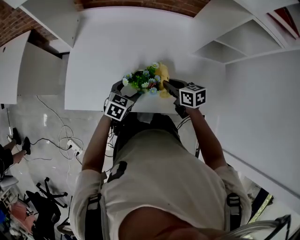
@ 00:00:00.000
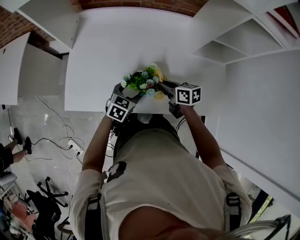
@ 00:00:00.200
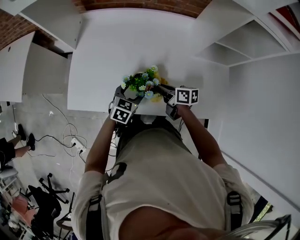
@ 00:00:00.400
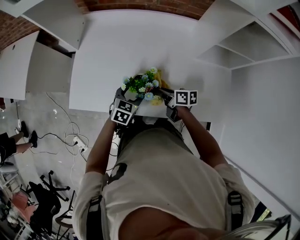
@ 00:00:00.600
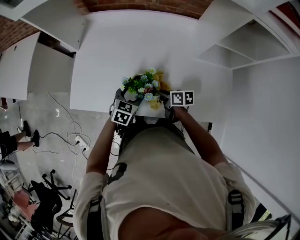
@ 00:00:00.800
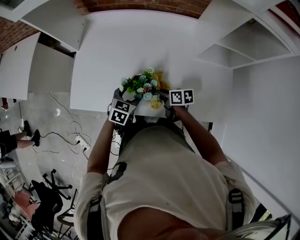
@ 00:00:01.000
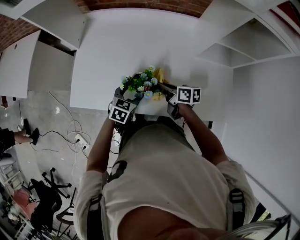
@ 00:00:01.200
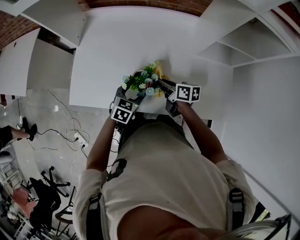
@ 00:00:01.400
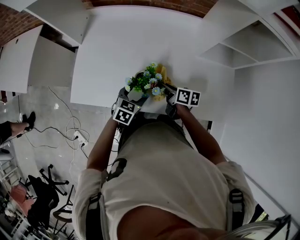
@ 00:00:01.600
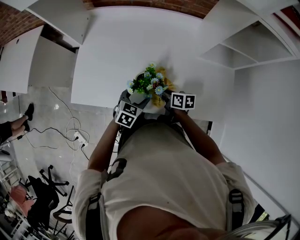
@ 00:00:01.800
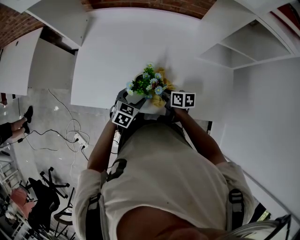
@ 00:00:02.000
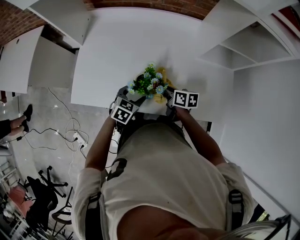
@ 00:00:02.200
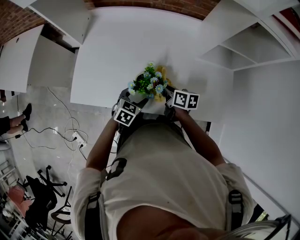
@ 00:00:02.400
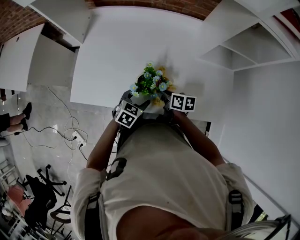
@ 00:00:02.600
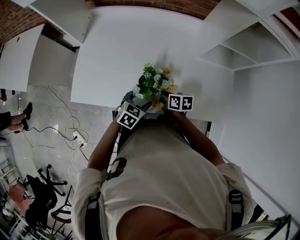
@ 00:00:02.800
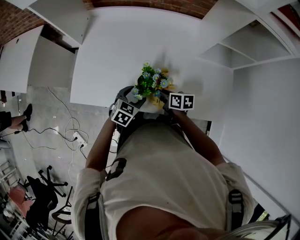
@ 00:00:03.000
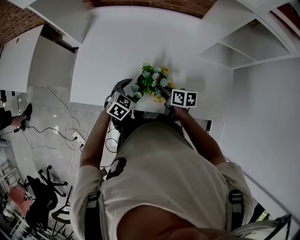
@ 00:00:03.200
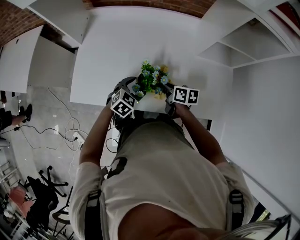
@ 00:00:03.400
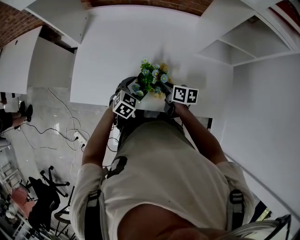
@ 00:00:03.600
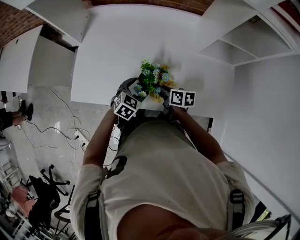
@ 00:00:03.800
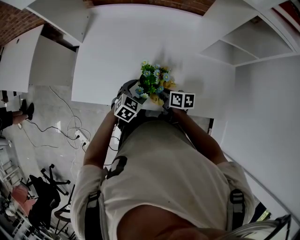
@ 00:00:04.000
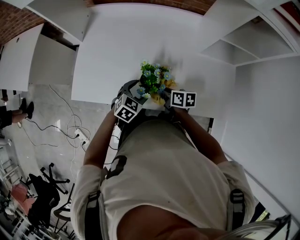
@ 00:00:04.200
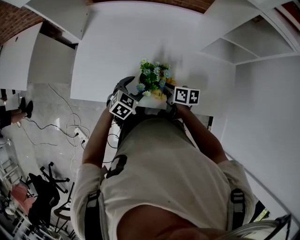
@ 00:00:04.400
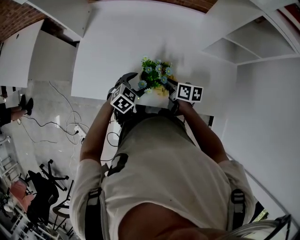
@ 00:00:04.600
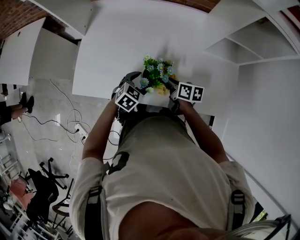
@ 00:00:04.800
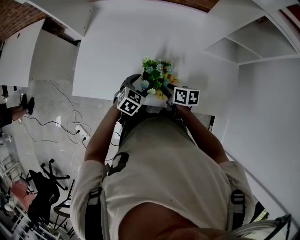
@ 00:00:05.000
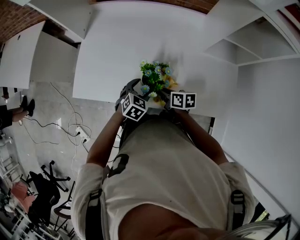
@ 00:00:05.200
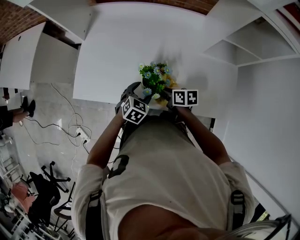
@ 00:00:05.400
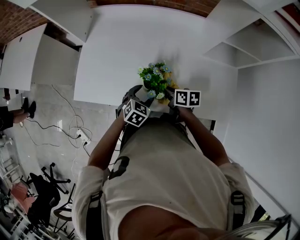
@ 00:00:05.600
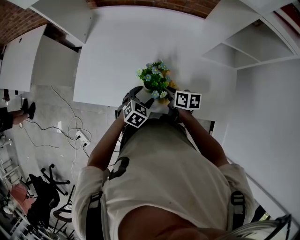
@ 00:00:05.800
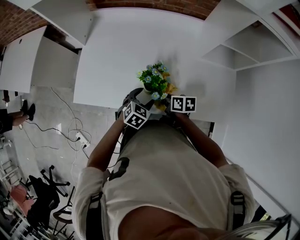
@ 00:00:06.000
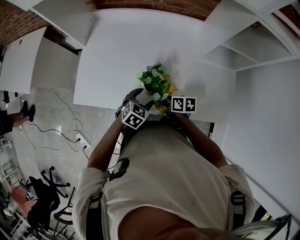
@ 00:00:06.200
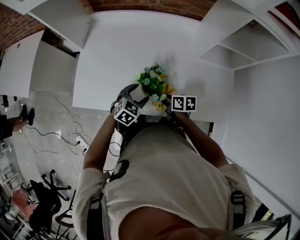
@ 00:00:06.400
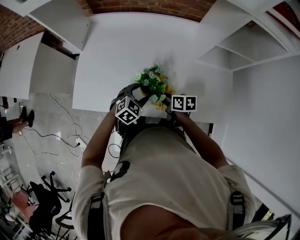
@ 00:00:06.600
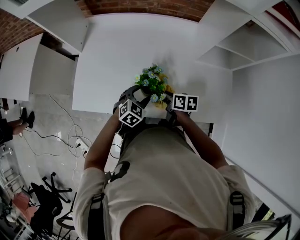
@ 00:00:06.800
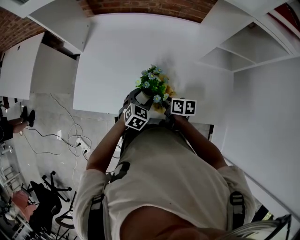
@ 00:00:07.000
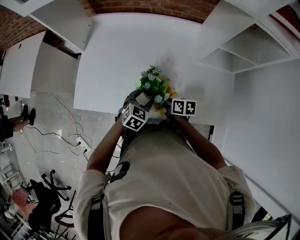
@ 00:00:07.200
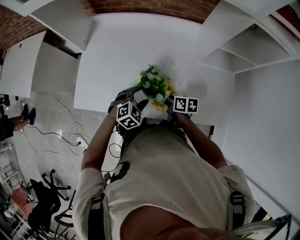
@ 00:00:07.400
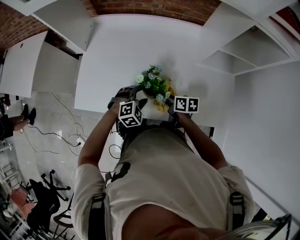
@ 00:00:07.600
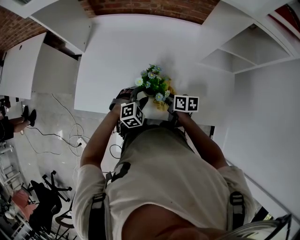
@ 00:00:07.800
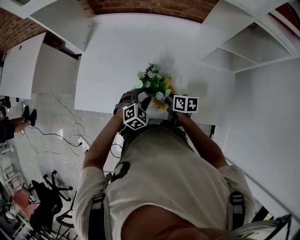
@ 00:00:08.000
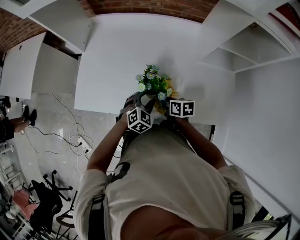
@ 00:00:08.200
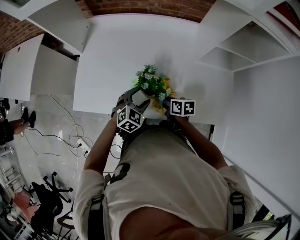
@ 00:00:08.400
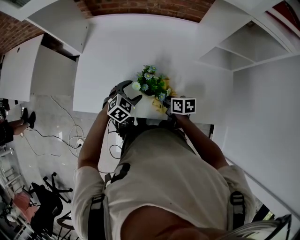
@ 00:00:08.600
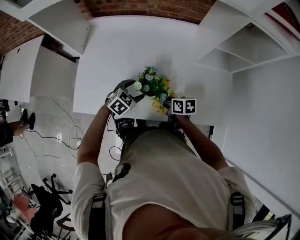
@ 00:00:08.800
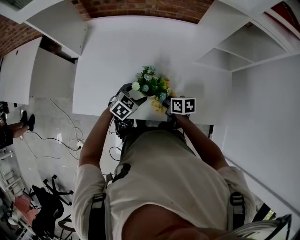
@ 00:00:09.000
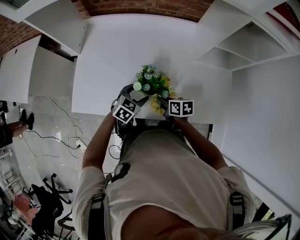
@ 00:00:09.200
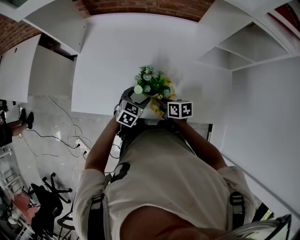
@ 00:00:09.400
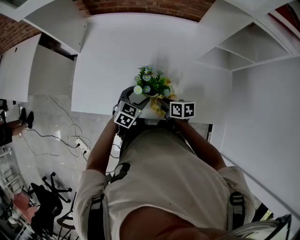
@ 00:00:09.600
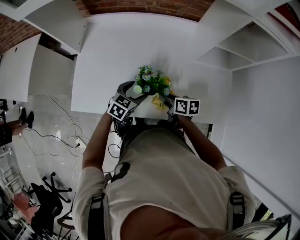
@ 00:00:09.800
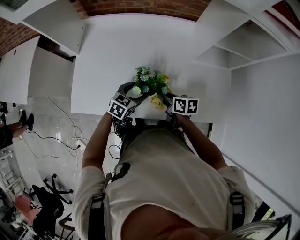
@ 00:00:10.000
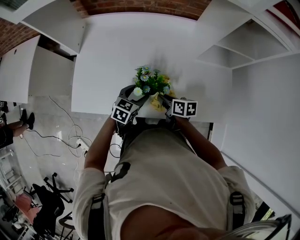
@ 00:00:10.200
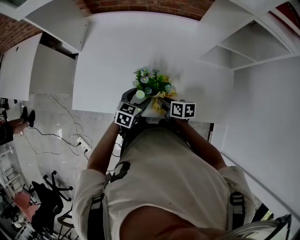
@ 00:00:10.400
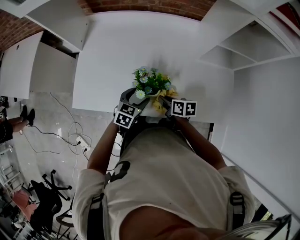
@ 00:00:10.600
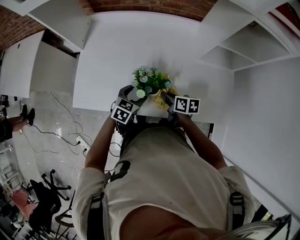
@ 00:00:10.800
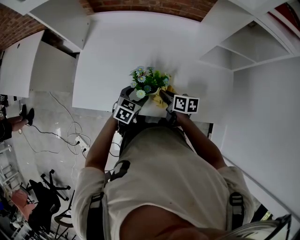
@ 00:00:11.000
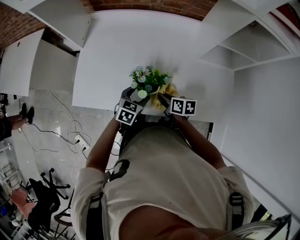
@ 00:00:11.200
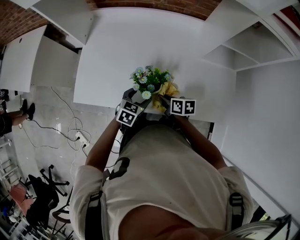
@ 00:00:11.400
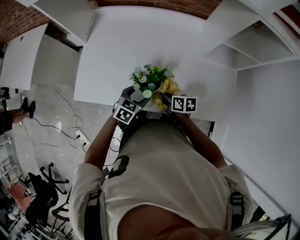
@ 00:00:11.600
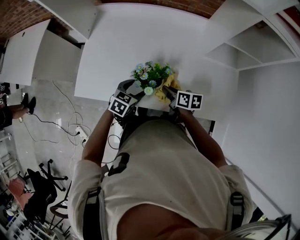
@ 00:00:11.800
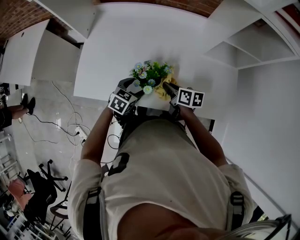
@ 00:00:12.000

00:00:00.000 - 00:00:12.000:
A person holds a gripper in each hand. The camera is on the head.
00:00:00.000 - 00:00:01.600: The right gripper shifts approximately 5 cm downward, and changes its angle by approximately 30 degrees.
00:00:01.600 - 00:00:06.000: There are only small adjustments of the grippers.
00:00:06.000 - 00:00:07.600: The left gripper swivels approximately 40 degrees.
00:00:07.600 - 00:00:09.000: The left gripper rotates roughly 30 degrees.
00:00:09.000 - 00:00:10.400: The left gripper swivels roughly 20 degrees.
00:00:10.400 - 00:00:12.000: The grippers make only small movements.

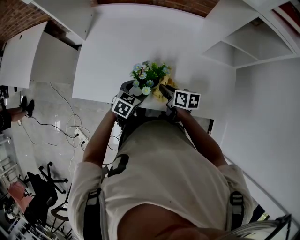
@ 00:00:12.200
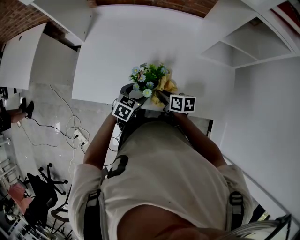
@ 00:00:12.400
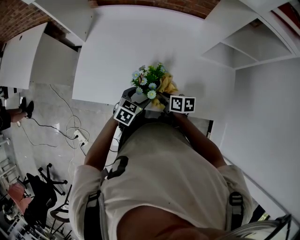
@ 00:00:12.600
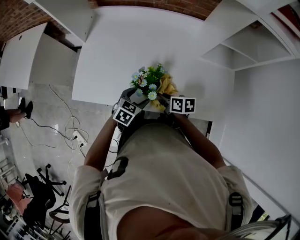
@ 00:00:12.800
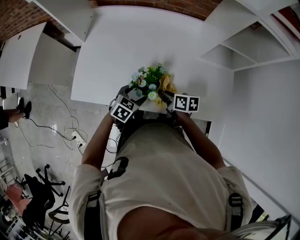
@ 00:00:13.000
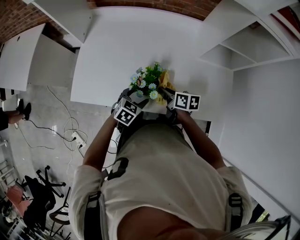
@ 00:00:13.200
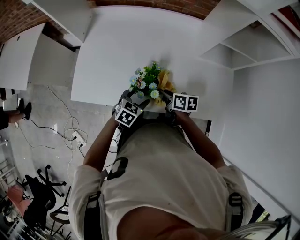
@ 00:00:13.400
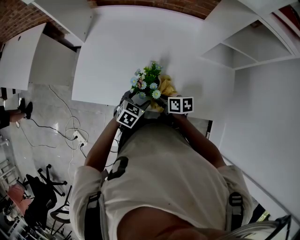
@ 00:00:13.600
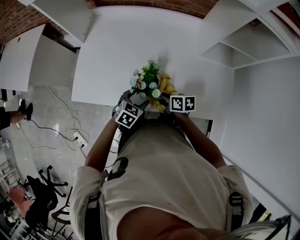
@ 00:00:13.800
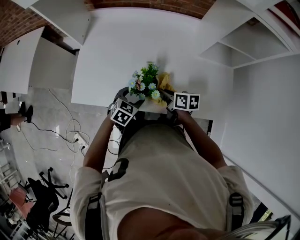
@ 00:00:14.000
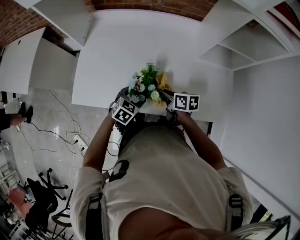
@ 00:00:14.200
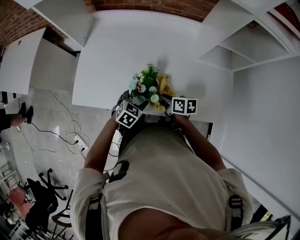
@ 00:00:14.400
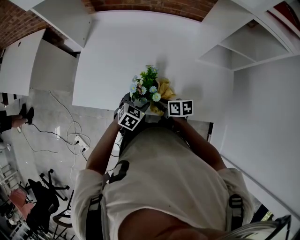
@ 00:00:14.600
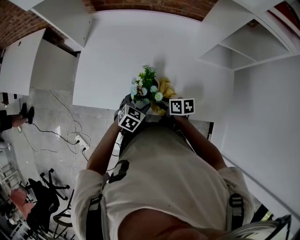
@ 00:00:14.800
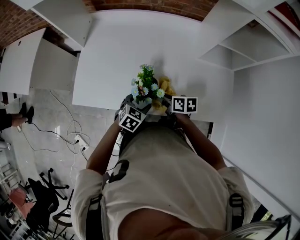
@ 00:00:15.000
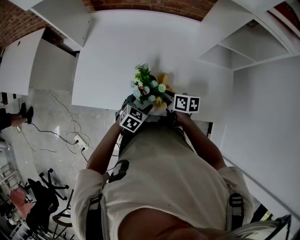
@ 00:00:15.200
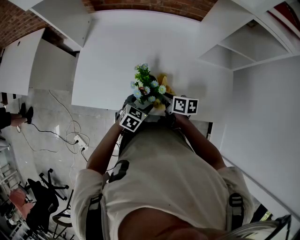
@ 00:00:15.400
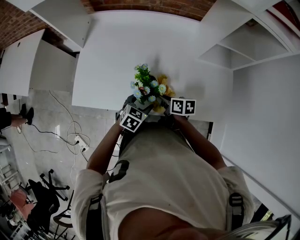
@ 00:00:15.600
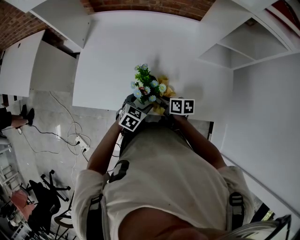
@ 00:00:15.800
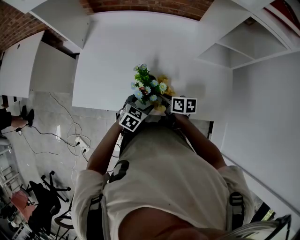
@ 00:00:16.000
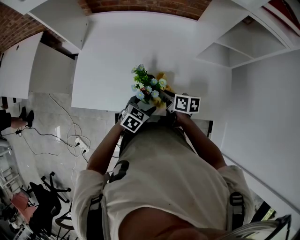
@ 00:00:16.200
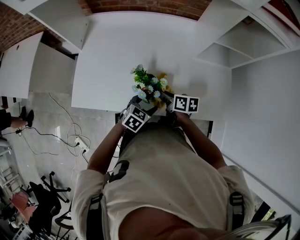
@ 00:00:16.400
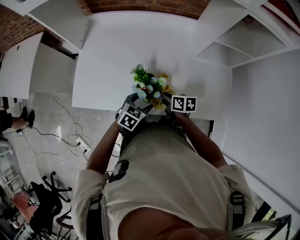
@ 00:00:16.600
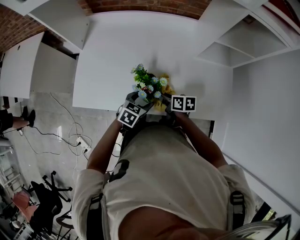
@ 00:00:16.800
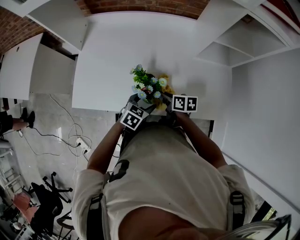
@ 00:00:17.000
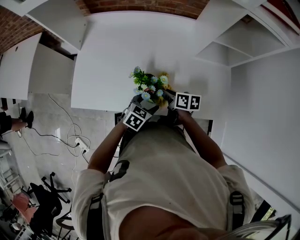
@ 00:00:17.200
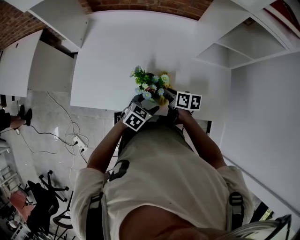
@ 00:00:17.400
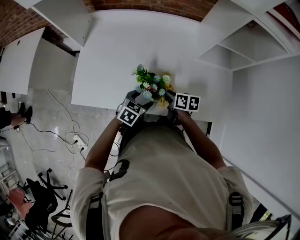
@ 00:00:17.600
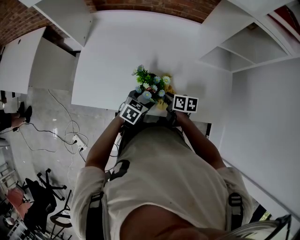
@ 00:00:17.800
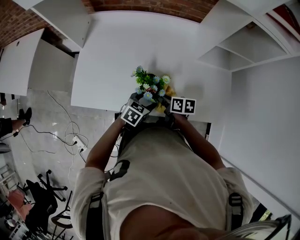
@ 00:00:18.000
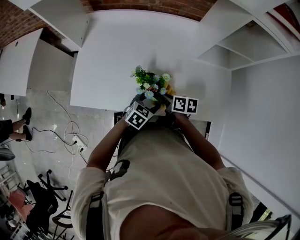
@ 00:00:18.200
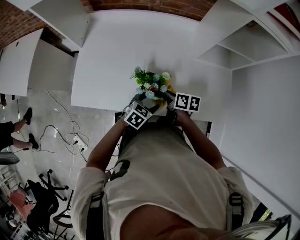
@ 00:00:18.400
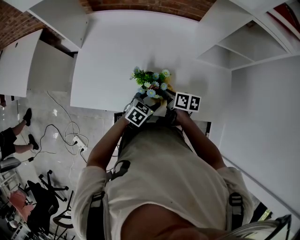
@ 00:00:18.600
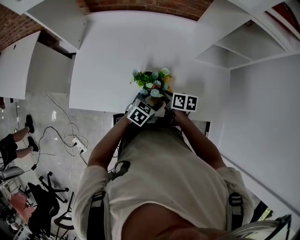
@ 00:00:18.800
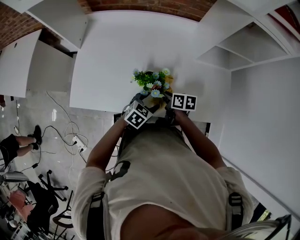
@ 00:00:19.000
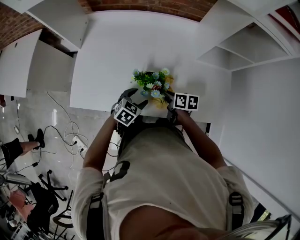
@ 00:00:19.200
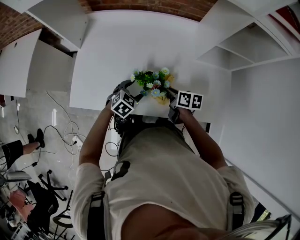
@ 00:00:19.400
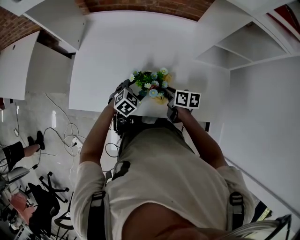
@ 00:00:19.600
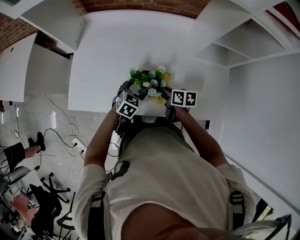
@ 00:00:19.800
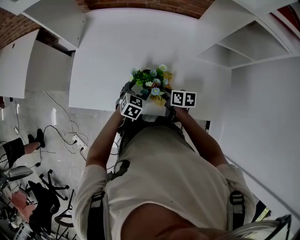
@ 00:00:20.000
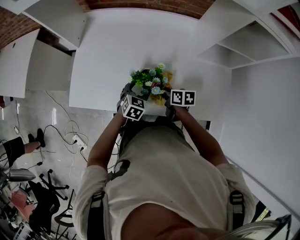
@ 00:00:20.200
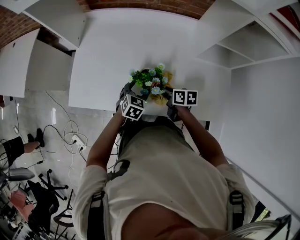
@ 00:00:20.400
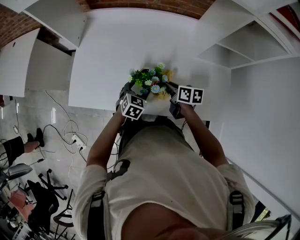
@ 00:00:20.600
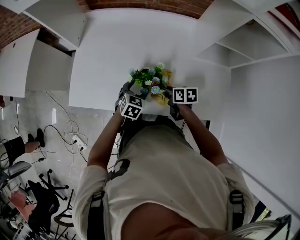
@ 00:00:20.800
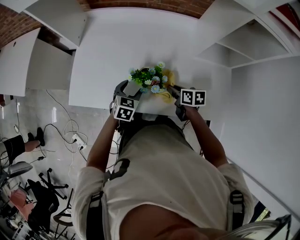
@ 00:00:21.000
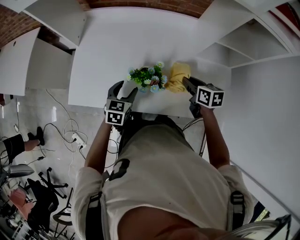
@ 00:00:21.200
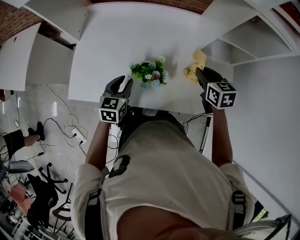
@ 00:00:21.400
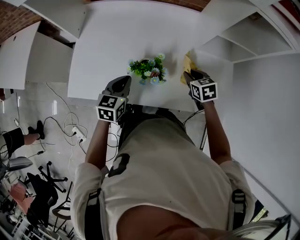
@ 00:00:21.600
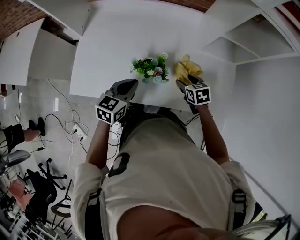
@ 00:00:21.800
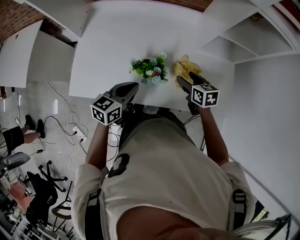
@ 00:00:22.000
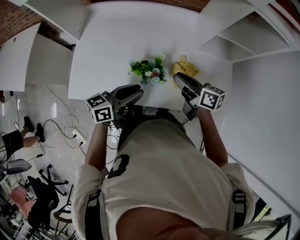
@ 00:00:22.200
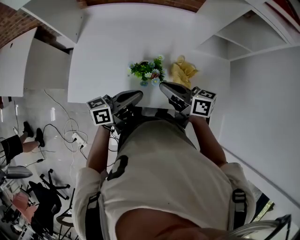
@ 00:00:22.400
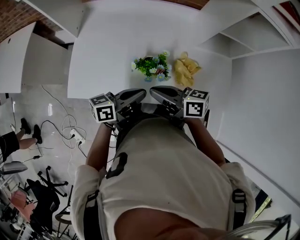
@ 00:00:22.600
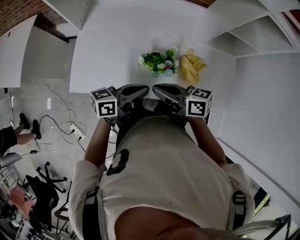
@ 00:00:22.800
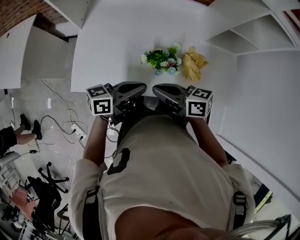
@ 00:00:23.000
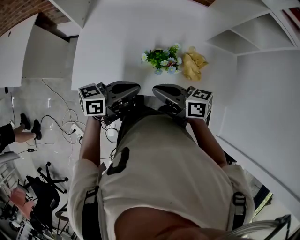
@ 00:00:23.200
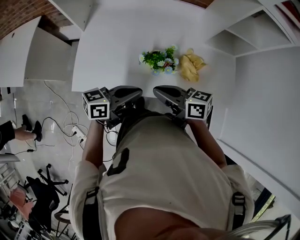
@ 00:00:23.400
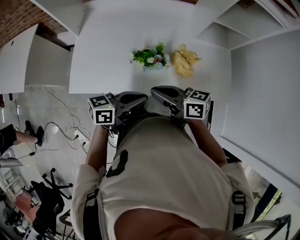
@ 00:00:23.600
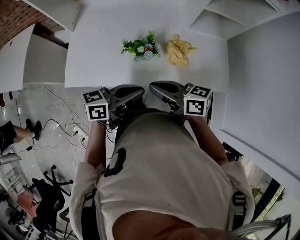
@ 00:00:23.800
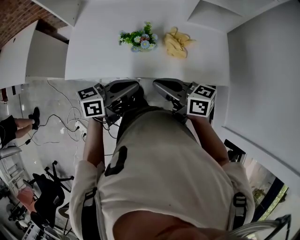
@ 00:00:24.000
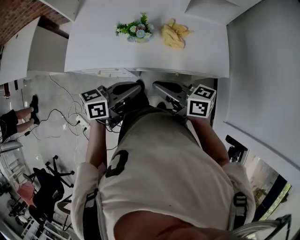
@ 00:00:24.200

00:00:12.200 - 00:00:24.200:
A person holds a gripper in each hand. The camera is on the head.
00:00:12.200 - 00:00:15.200: There are only small adjustments of the grippers.
00:00:15.200 - 00:00:16.600: The right gripper moves up and down over approximately 5 cm, changing direction 2 times.
00:00:16.600 - 00:00:18.200: The left gripper moves left and right over roughly 5 cm, changing direction 2 times.
00:00:18.200 - 00:00:19.800: The left gripper travels forward and to the left by about 10 cm.
00:00:19.800 - 00:00:21.200: The left gripper heads to the left and upward, covering approximately 10 cm, and swivels some 20 degrees, while the right gripper is displaced to the right and upward by some 15 cm.
00:00:21.200 - 00:00:22.600: The right gripper heads to the left, backward and upward, covering about 25 cm, changes its angle by roughly 40 degrees, and opens, then closes once more. The left gripper is displaced upward and backward by about 10 cm, points its fingers about 40 degrees further upward, and closes.
00:00:22.600 - 00:00:24.200: The right gripper changes place by some 20 cm. Meanwhile the left gripper shifts by some 20 cm.
